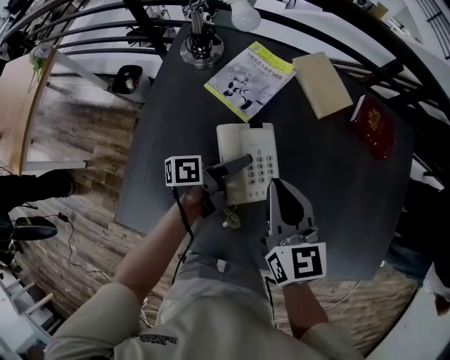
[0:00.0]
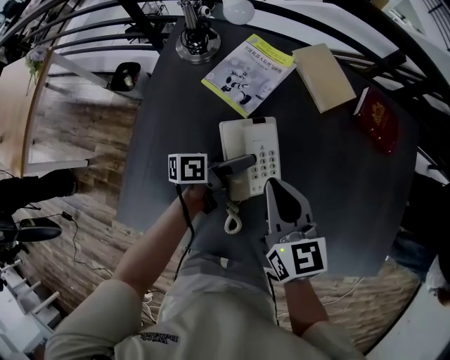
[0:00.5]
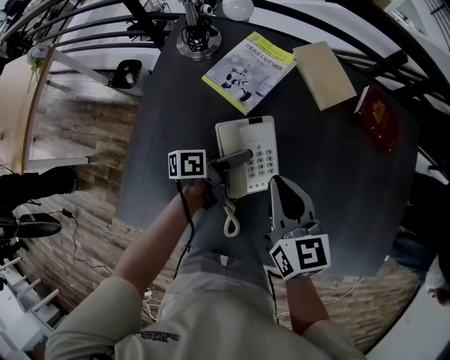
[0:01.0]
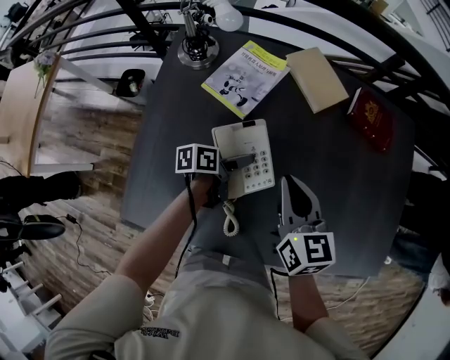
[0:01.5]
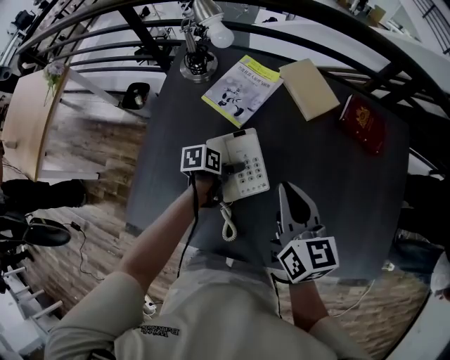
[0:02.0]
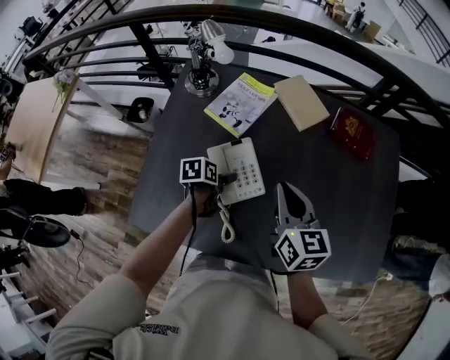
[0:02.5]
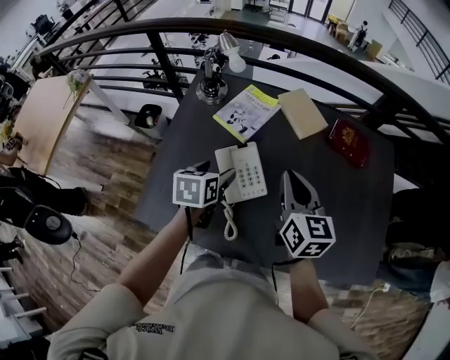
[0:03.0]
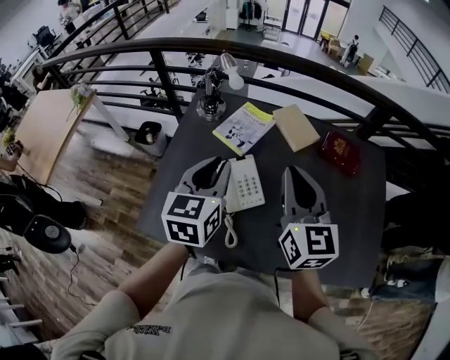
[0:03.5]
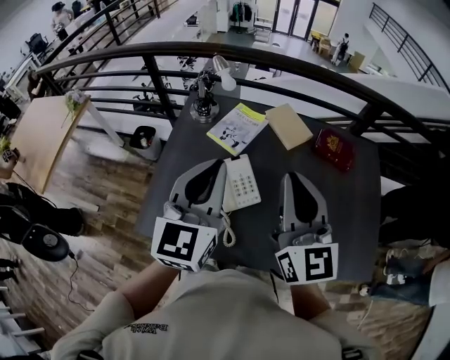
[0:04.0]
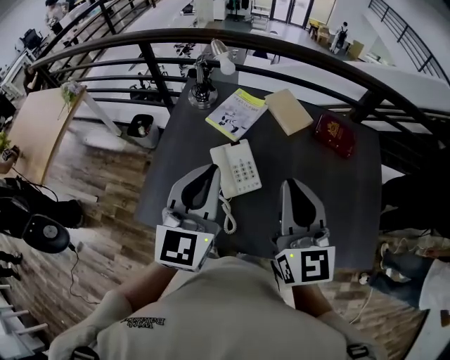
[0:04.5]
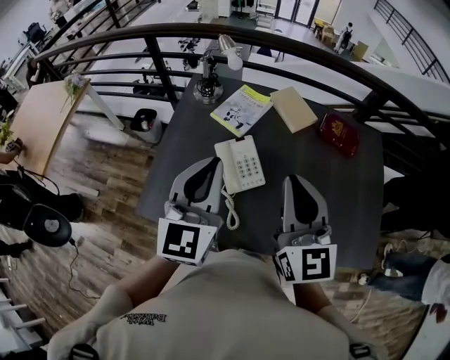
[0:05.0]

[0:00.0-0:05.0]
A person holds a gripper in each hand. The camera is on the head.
0:00.0 to 0:02.5: The right gripper is displaced to the right by about 10 cm. The left gripper moves backward, some 5 cm, and angles its fingers downward, by roughly 50 degrees.
0:02.5 to 0:05.0: The right gripper is displaced upward and backward by approximately 20 cm, and rotates some 30 degrees; the left gripper heads upward, covering some 40 cm, points its fingers approximately 50 degrees further upward, and closes up.

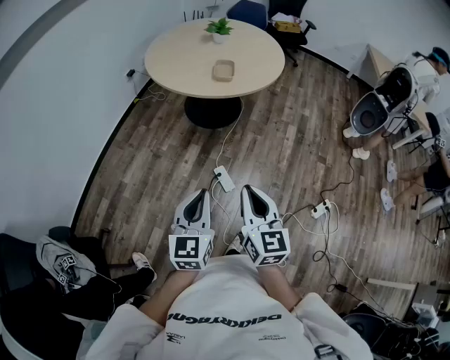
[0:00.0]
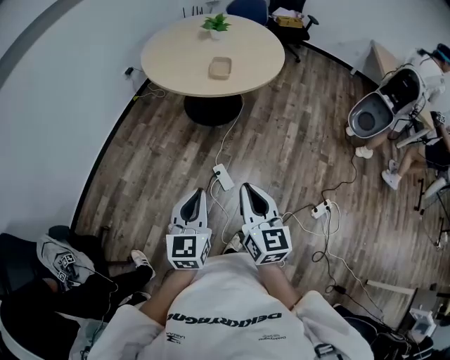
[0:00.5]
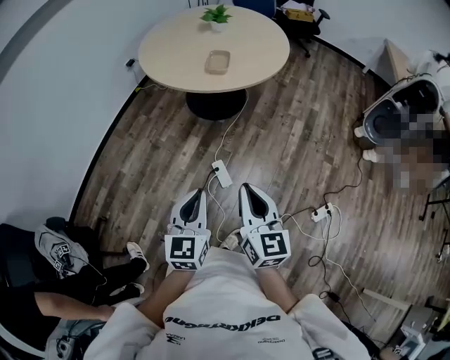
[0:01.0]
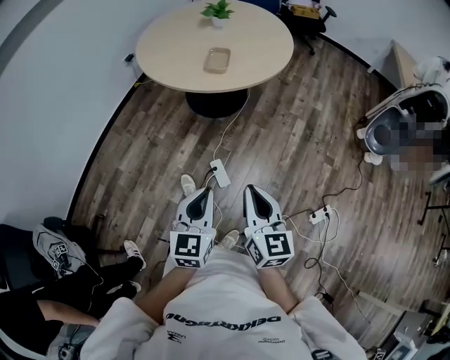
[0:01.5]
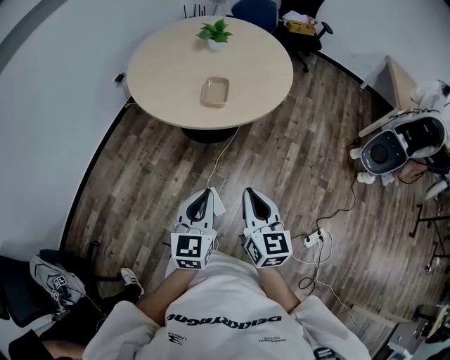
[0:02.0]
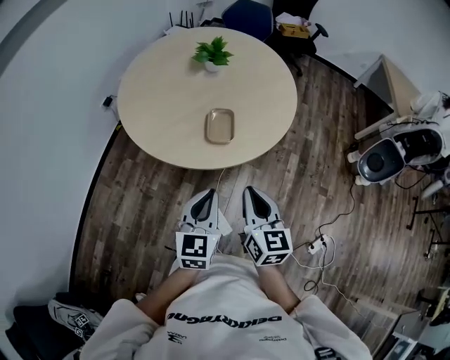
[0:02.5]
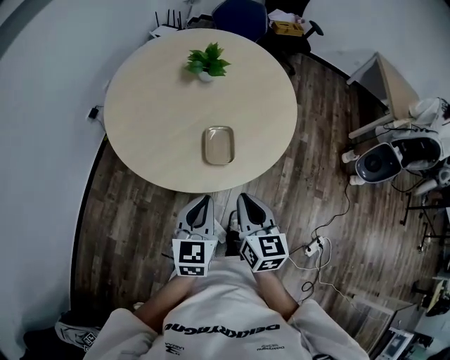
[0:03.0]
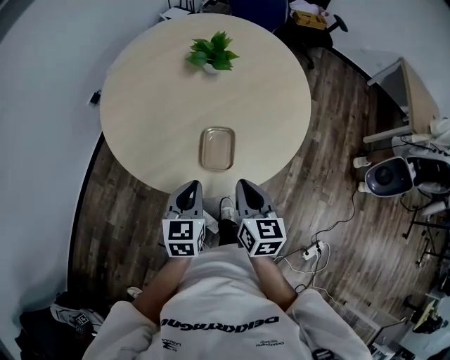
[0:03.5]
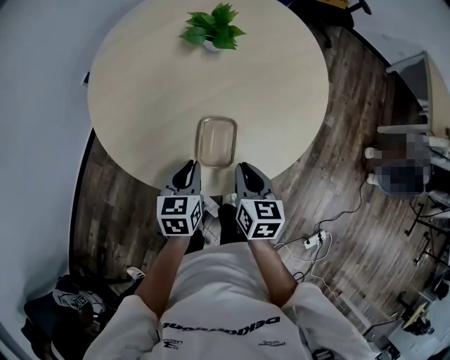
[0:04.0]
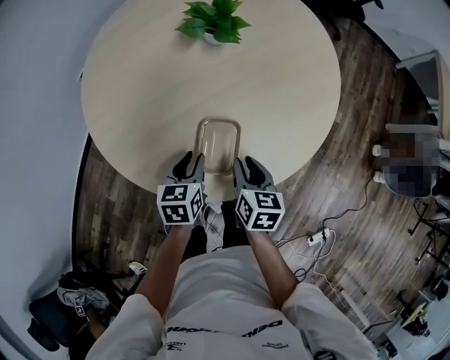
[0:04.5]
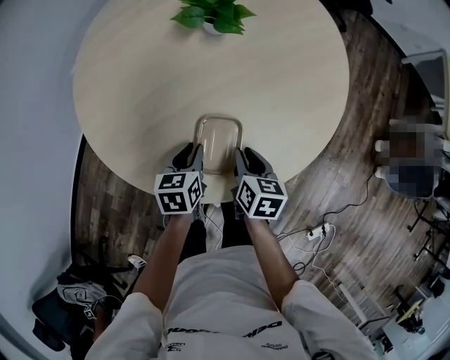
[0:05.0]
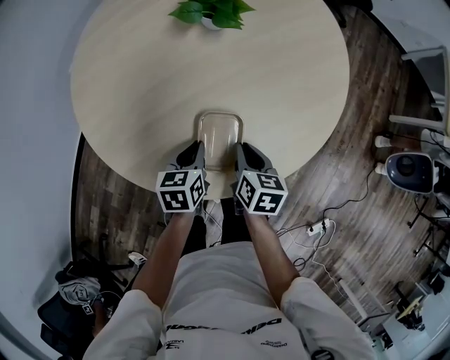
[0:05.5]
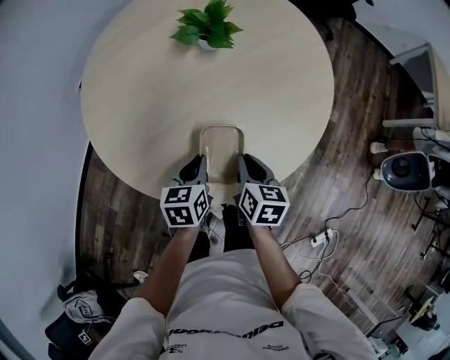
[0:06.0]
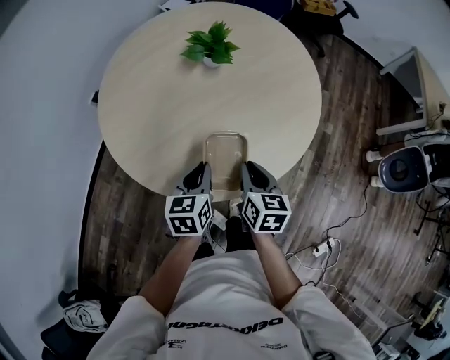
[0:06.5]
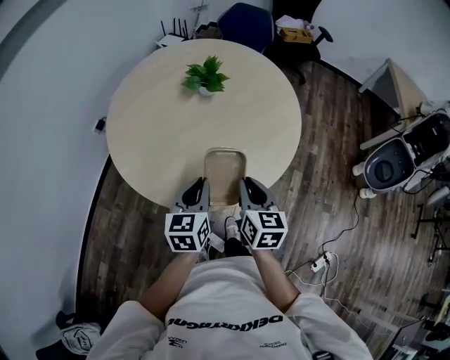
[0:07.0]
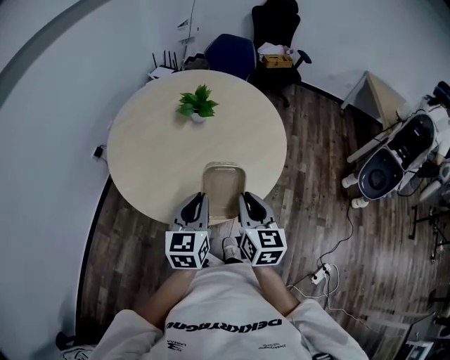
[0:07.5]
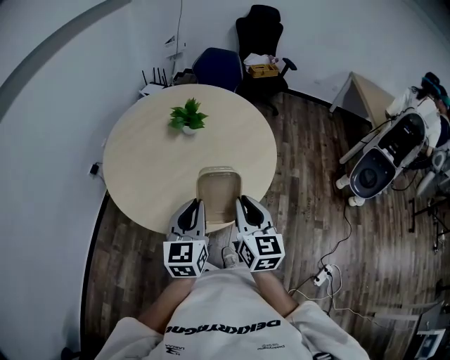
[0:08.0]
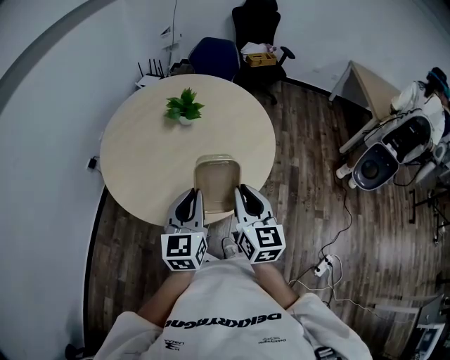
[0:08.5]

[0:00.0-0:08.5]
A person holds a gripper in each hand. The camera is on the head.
0:00.0 to 0:02.0: Both grippers move forward, roughly 30 cm.
0:02.0 to 0:04.0: Both grippers are carried forward, roughly 50 cm. The right gripper turns by roughly 20 degrees, while the left gripper changes its angle by approximately 30 degrees.
0:04.0 to 0:06.5: The right gripper reaches about 10 cm downward, then returns. Meanwhile the left gripper reaches some 10 cm downward, then returns, and opens, then closes once more.
0:06.5 to 0:08.5: Both grippers travel together upward and backward, about 25 cm. The right gripper turns by some 30 degrees; the left gripper rotates about 30 degrees.

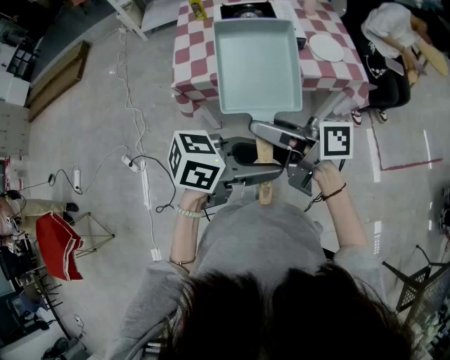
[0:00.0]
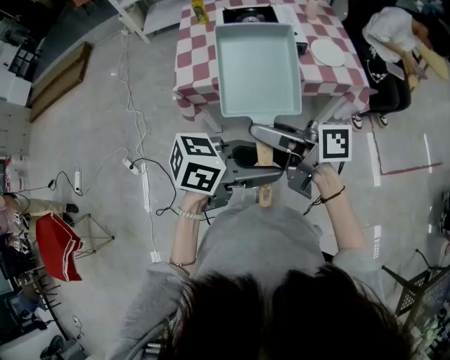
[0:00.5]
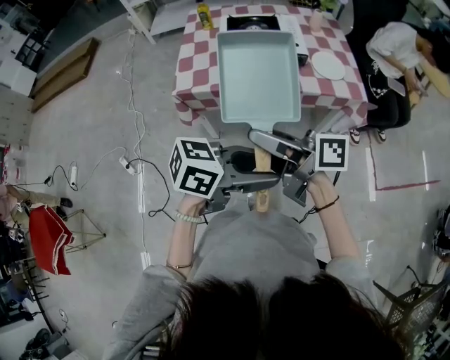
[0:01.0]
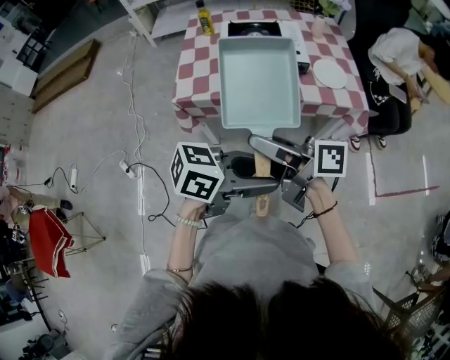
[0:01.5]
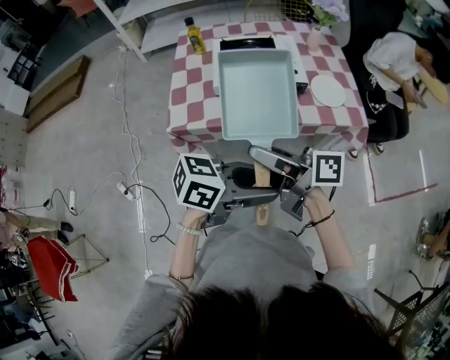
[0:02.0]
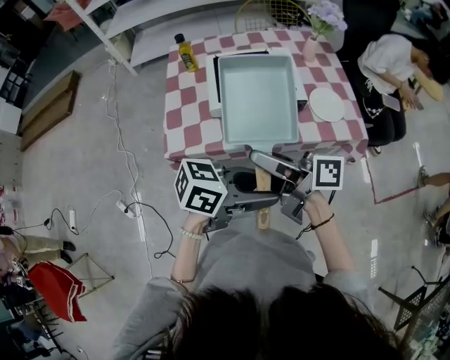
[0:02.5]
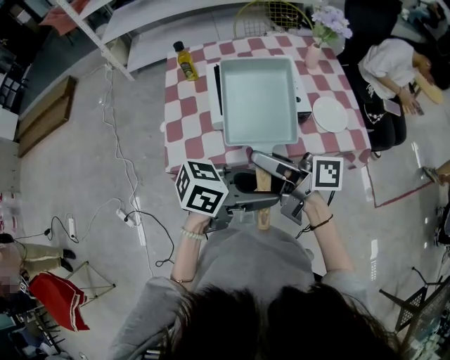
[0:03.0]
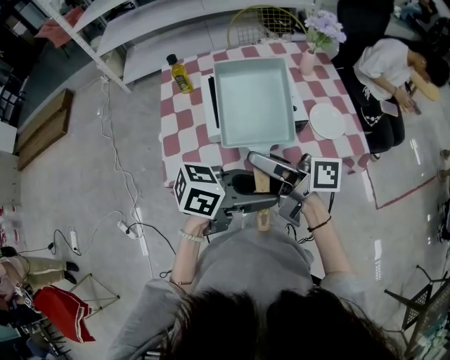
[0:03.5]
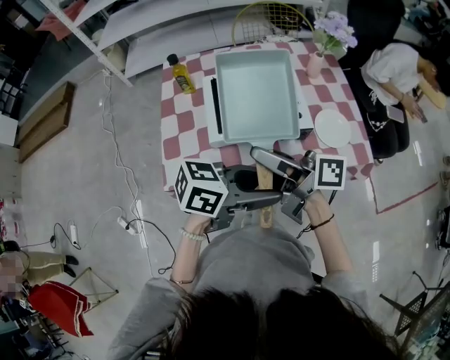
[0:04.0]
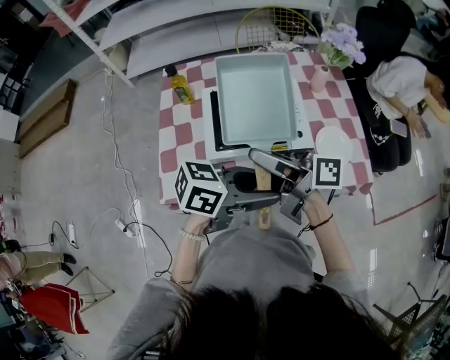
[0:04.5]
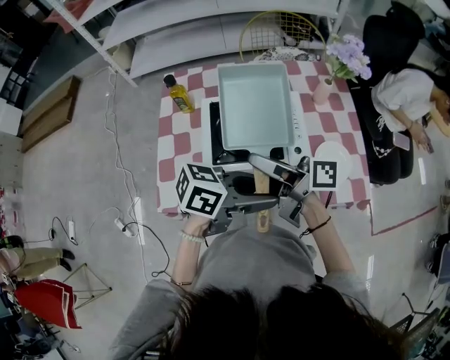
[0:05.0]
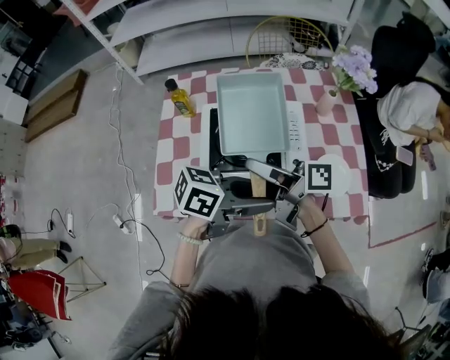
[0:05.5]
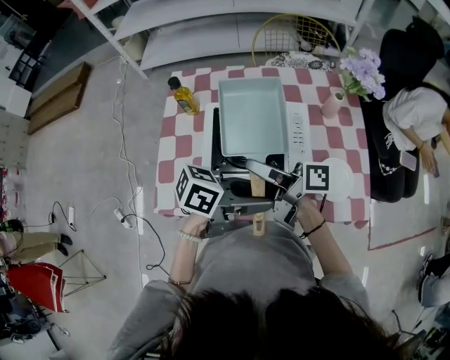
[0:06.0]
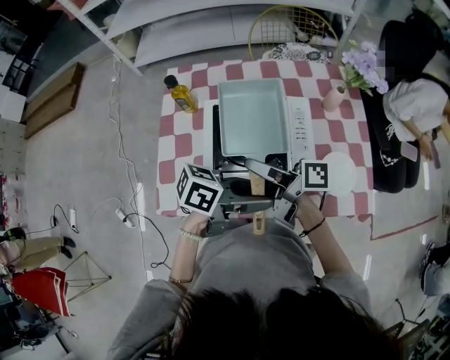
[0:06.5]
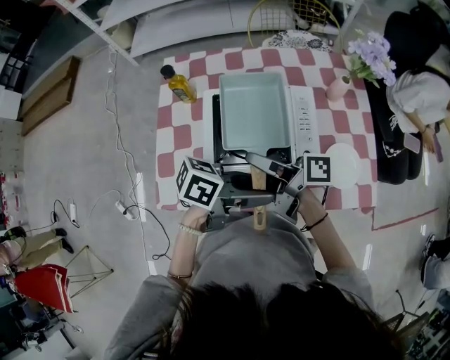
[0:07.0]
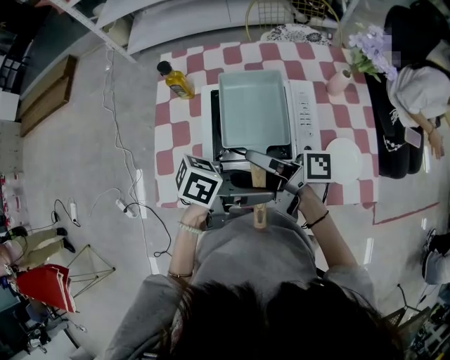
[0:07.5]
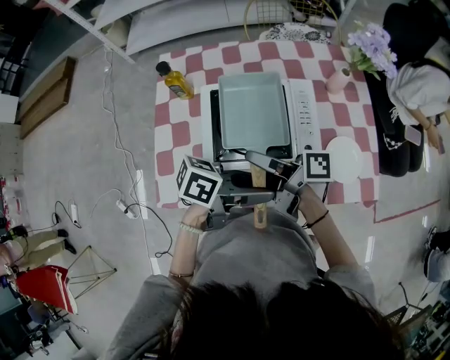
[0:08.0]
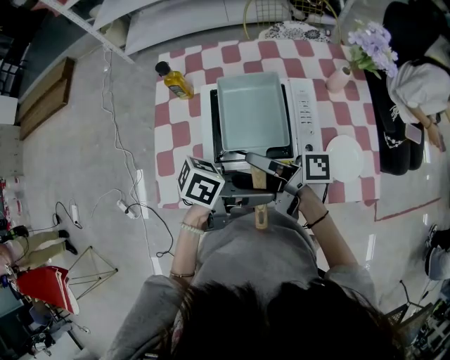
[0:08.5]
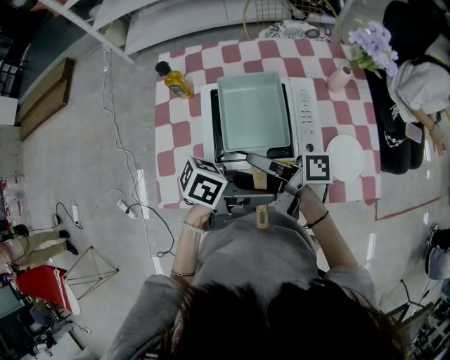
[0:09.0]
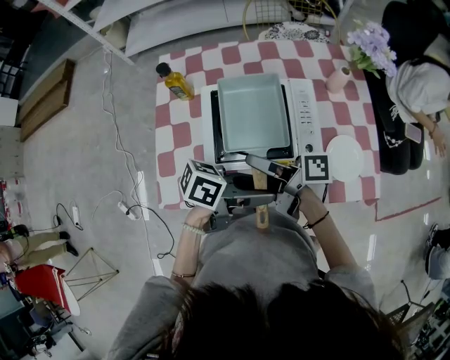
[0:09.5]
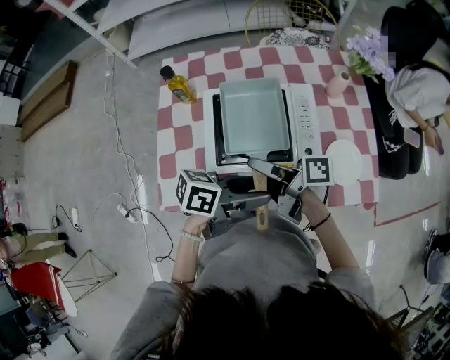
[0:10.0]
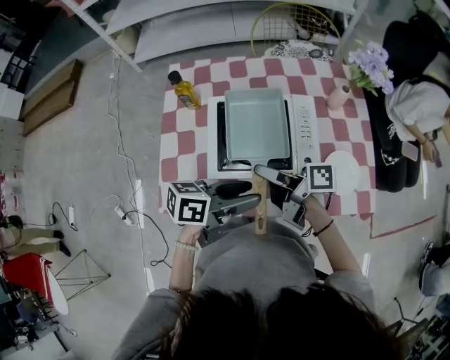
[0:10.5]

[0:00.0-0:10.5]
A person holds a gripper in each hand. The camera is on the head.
0:00.0 to 0:02.0: The right gripper changes place by roughly 10 cm. Meanwhile the left gripper changes place by some 10 cm.
0:02.0 to 0:04.0: The left gripper ends up approximately 15 cm from where it was. Meanwhile the right gripper ends up roughly 20 cm from where it was.
0:04.0 to 0:06.5: The left gripper ends up some 15 cm from where it was. Meanwhile the right gripper ends up about 15 cm from where it was.
0:06.5 to 0:10.5: The grippers make only small movements.

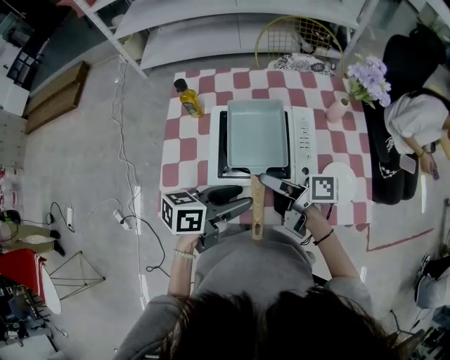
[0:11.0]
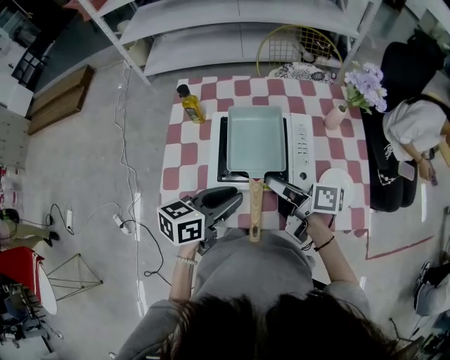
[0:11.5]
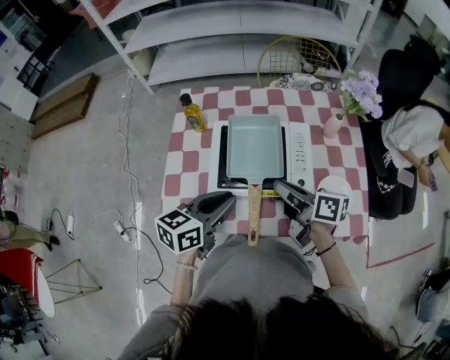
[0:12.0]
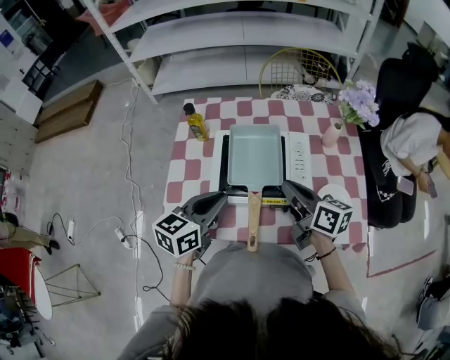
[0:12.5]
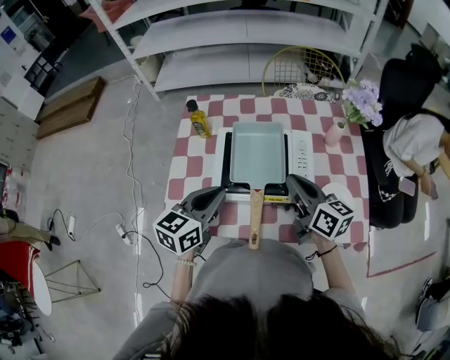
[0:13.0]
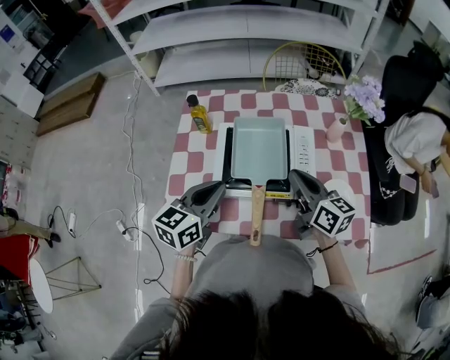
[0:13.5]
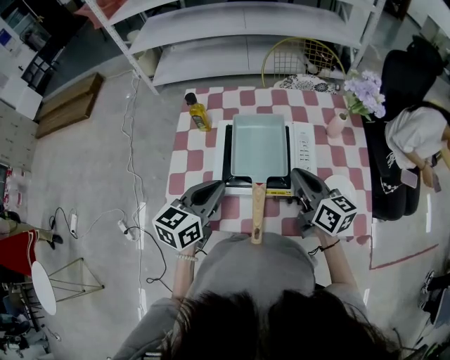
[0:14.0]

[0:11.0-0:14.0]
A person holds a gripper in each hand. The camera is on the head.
0:11.0 to 0:12.5: The right gripper is displaced to the right by roughly 5 cm, swivels some 40 degrees, and closes its fingers; the left gripper ends up some 5 cm from where it was, swivels about 30 degrees, and closes its fingers.
0:12.5 to 0:14.0: The grippers stay close to where they were, moving slightly.
